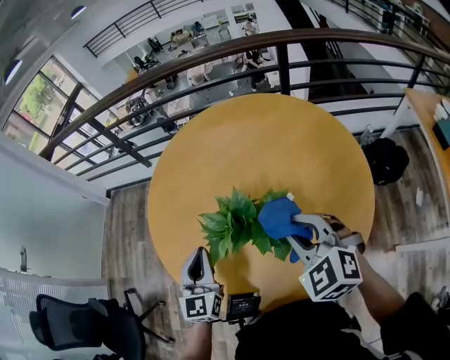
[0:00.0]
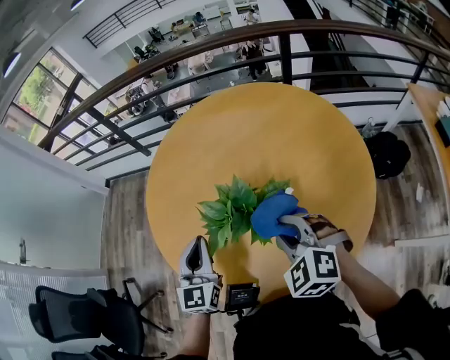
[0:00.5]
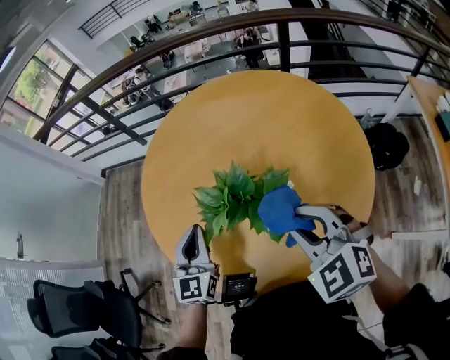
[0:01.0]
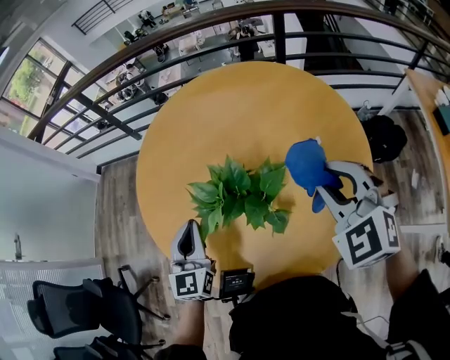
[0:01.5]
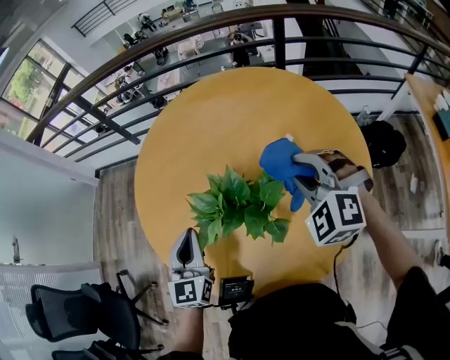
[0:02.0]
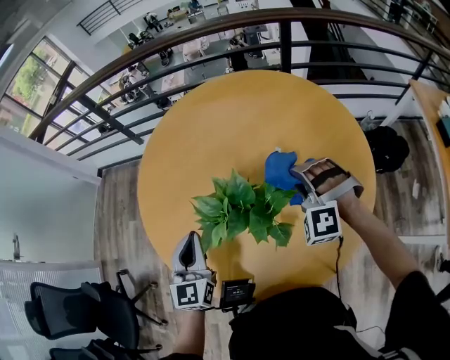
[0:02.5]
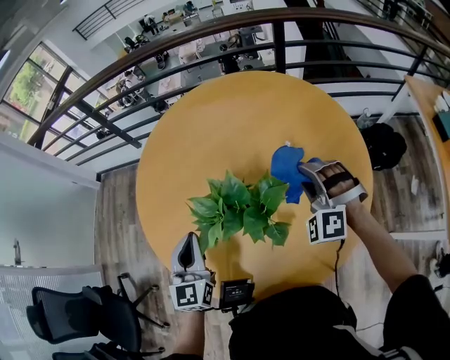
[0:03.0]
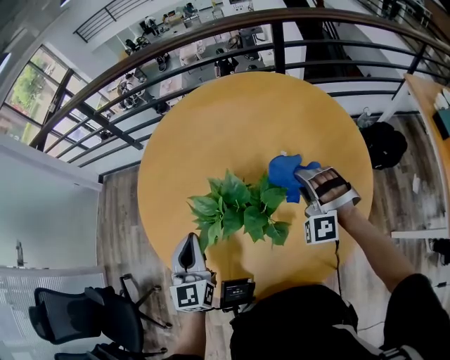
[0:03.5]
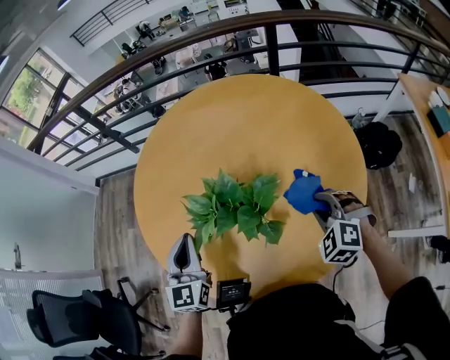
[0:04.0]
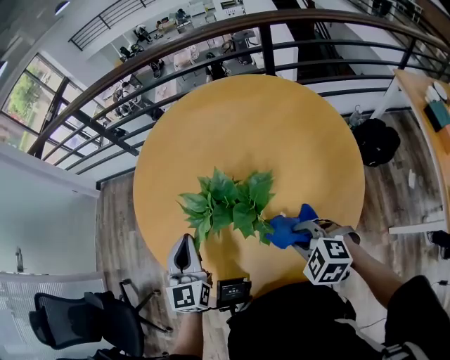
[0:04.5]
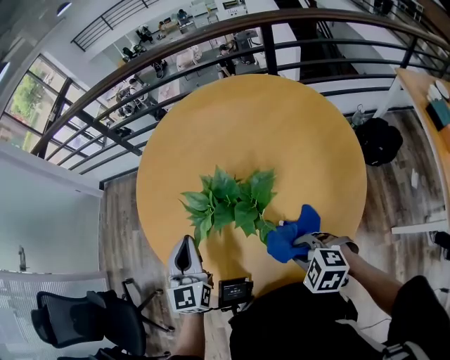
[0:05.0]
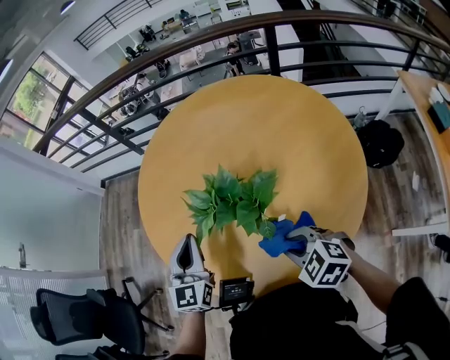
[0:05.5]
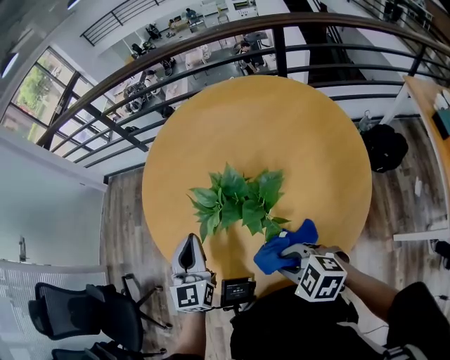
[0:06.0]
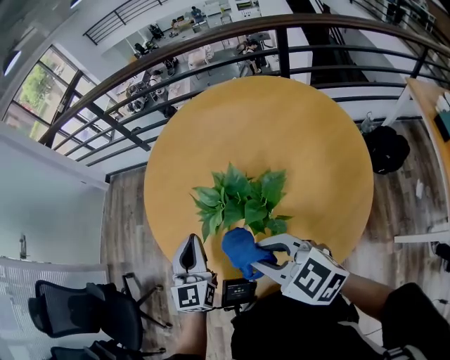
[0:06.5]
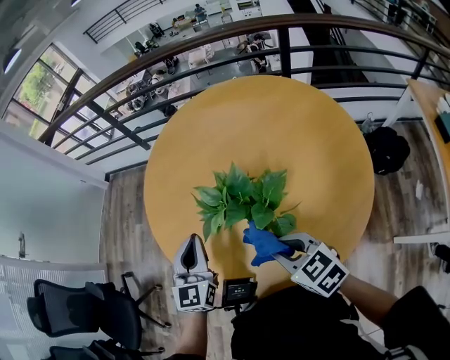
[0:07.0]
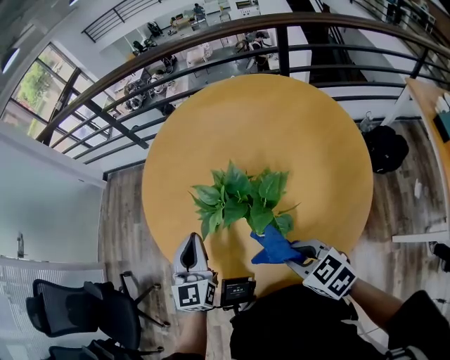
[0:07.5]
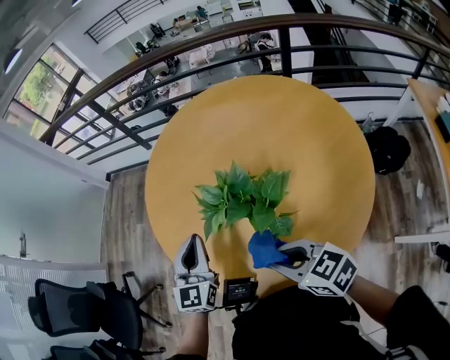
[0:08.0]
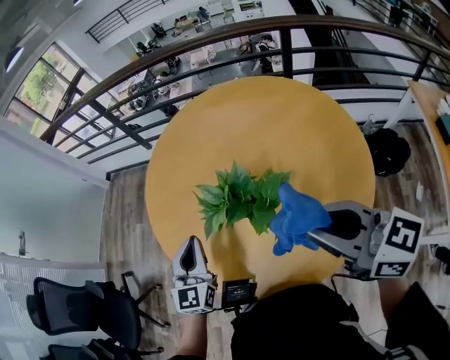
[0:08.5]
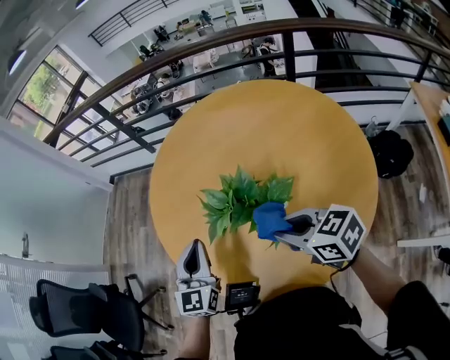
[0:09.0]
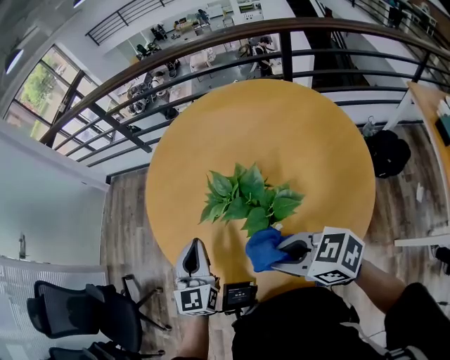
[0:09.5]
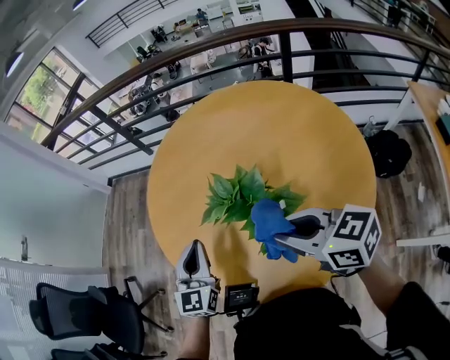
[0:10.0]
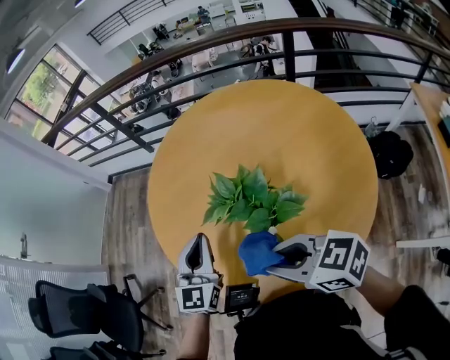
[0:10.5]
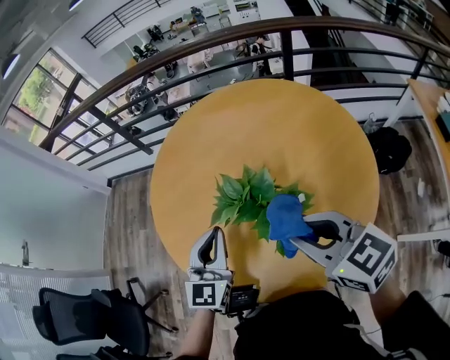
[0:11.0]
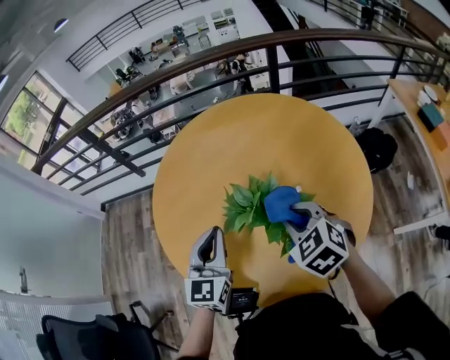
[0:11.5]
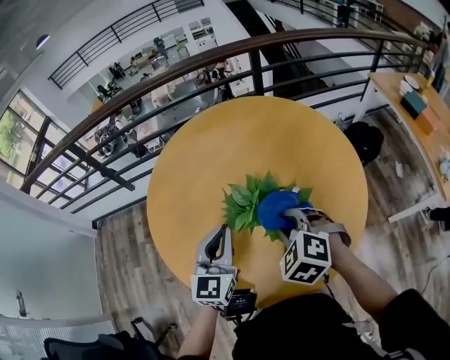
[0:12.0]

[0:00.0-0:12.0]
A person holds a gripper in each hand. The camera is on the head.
0:00.0 to 0:02.0: The right gripper shifts about 10 cm forward, and rotates about 20 degrees.
0:02.0 to 0:04.0: The right gripper is displaced downward, backward and to the right by some 15 cm.
0:04.0 to 0:06.0: The right gripper changes place by approximately 20 cm, and changes its angle by approximately 40 degrees.
0:06.0 to 0:08.0: The right gripper moves up and down over about 10 cm, changing direction 2 times, and turns by approximately 30 degrees.
0:08.0 to 0:10.0: The right gripper moves up and down over roughly 15 cm, changing direction 2 times.
0:10.0 to 0:12.0: The left gripper ends up about 10 cm from where it was, and changes its angle by approximately 30 degrees; the right gripper goes approximately 5 cm downward, and tilts its fingers roughly 30 degrees downward.

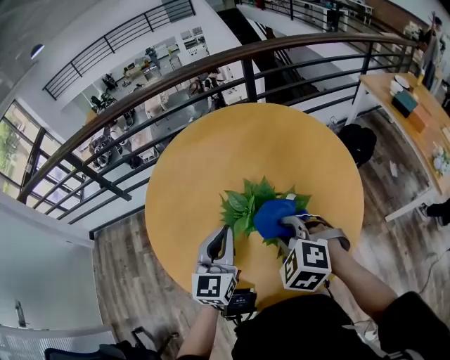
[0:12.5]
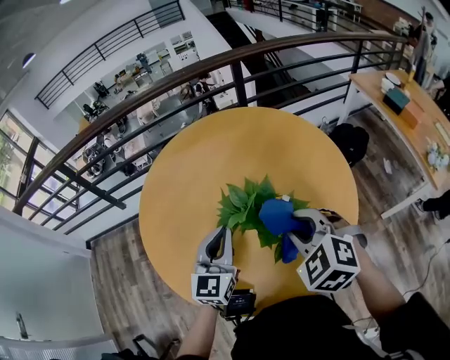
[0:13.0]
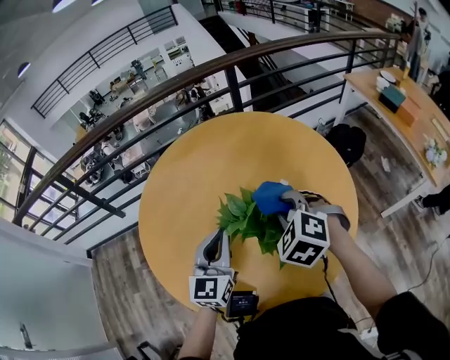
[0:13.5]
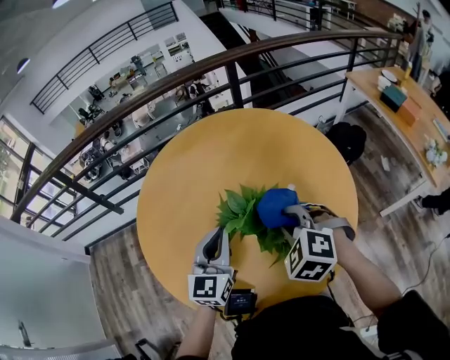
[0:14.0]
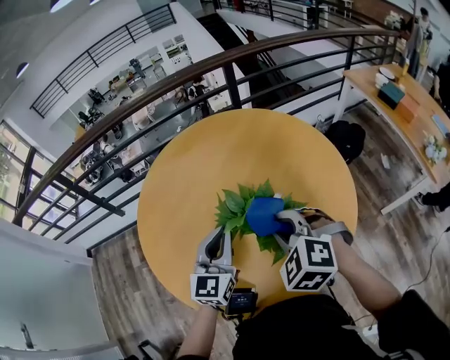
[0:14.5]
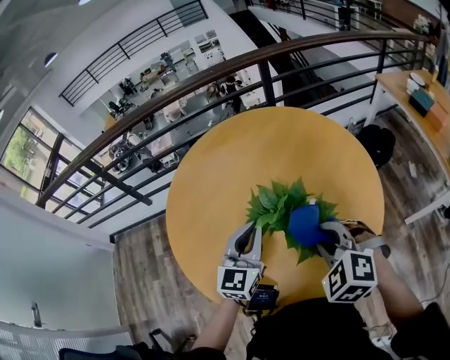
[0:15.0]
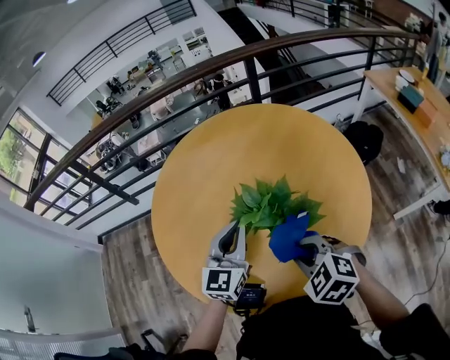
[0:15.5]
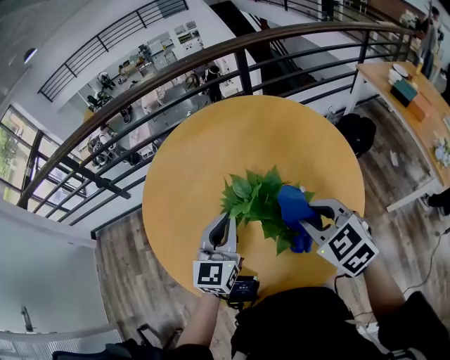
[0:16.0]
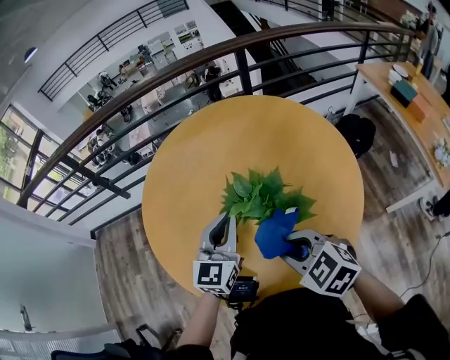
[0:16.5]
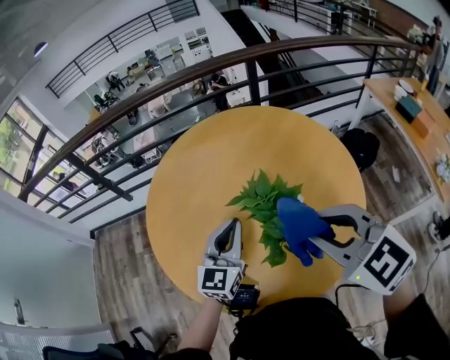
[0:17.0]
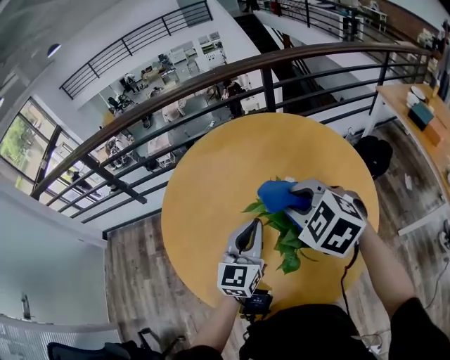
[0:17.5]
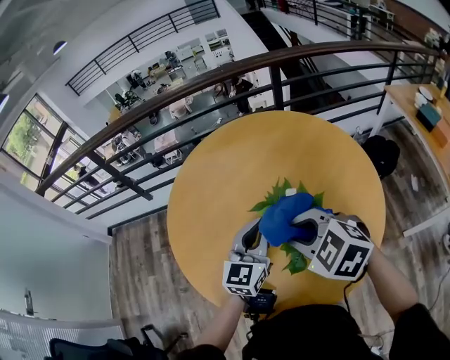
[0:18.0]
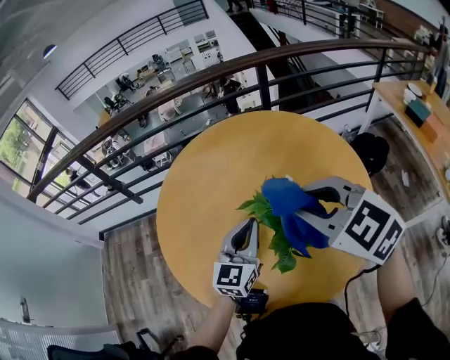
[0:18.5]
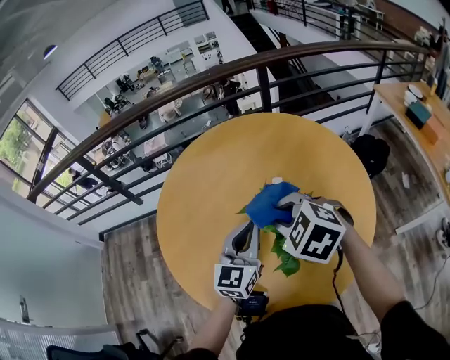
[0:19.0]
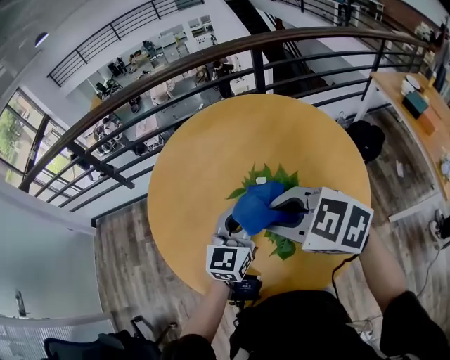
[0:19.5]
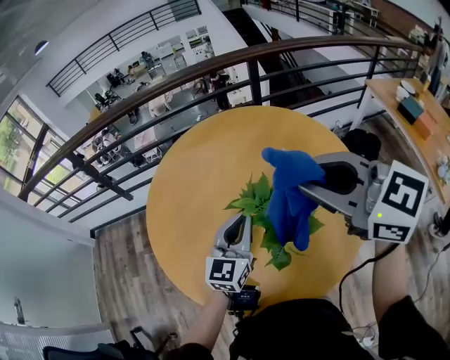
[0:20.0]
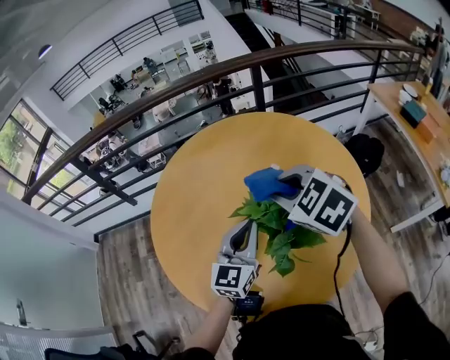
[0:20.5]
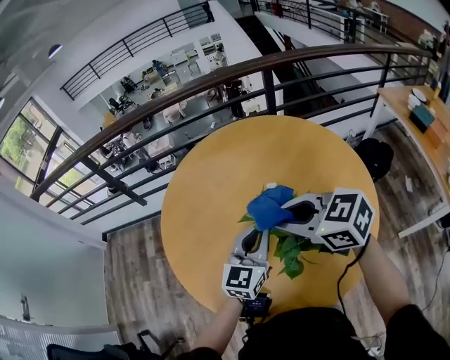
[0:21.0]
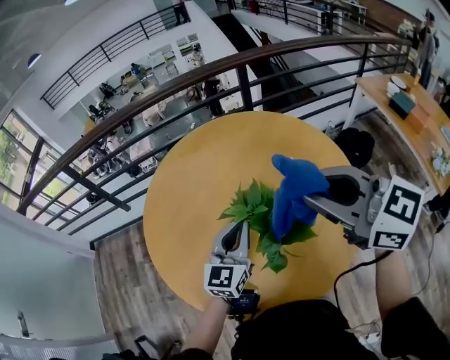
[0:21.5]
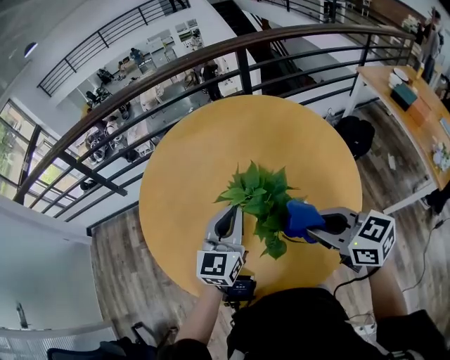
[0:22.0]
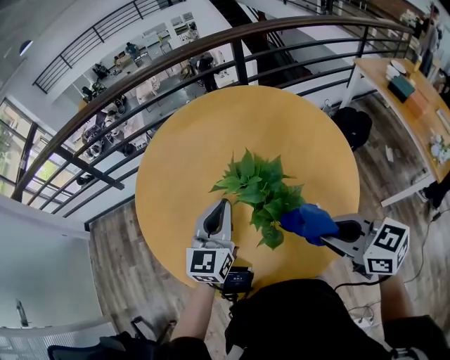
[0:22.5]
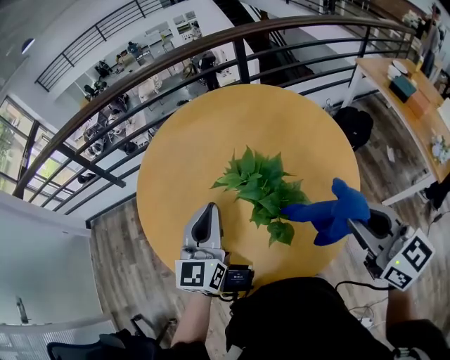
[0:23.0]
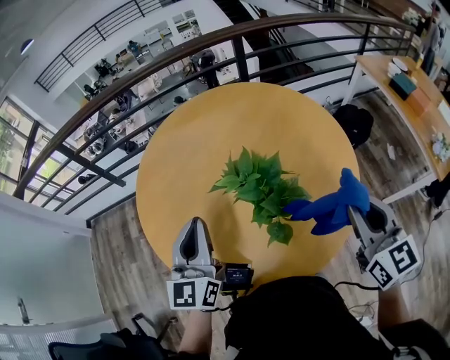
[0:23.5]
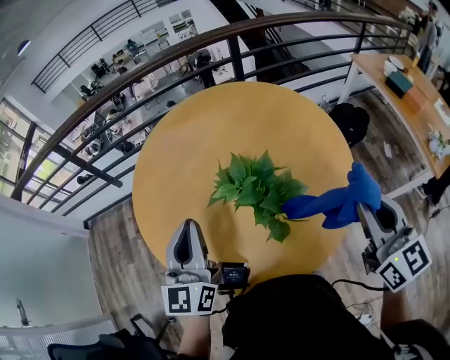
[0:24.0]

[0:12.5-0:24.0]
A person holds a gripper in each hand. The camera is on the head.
0:14.5 to 0:16.5: The right gripper moves forward and backward over about 10 cm, changing direction 2 times, and swivels roughly 30 degrees.
0:16.5 to 0:18.5: The right gripper moves up and down over some 15 cm, changing direction 2 times.
0:18.5 to 0:20.0: The right gripper travels upward by some 5 cm, and turns by some 20 degrees.
0:20.0 to 0:22.0: The right gripper moves up and down over some 20 cm, changing direction 2 times, and turns by roughly 20 degrees.
0:22.0 to 0:24.0: The right gripper shifts roughly 15 cm to the right, upward and backward, and turns by roughly 40 degrees, while the left gripper heads to the left, upward and backward, covering roughly 15 cm.

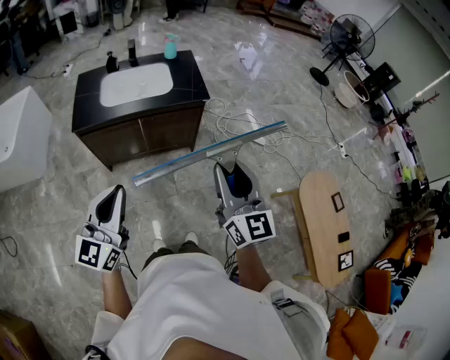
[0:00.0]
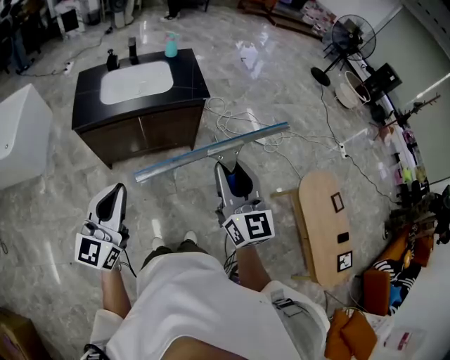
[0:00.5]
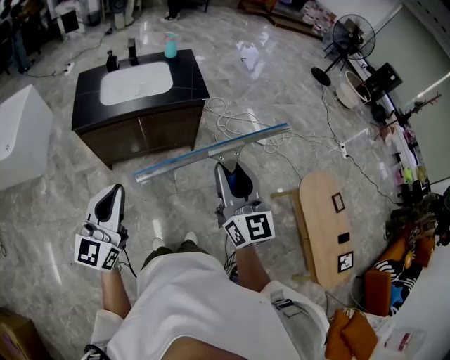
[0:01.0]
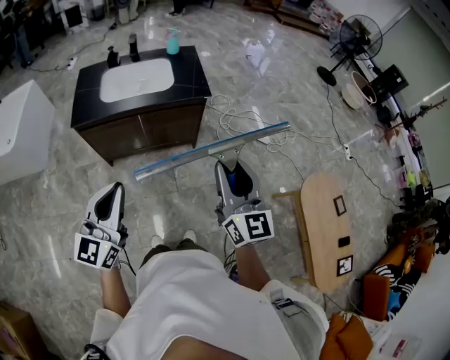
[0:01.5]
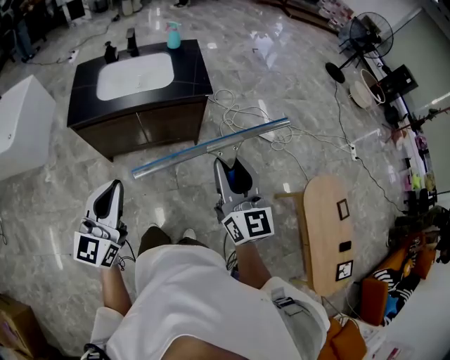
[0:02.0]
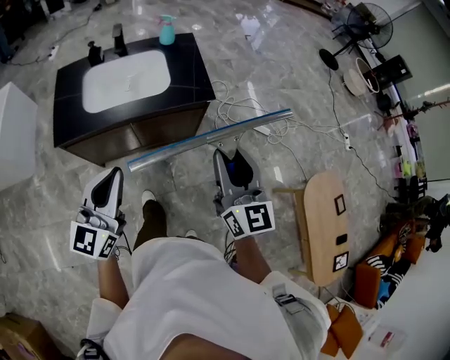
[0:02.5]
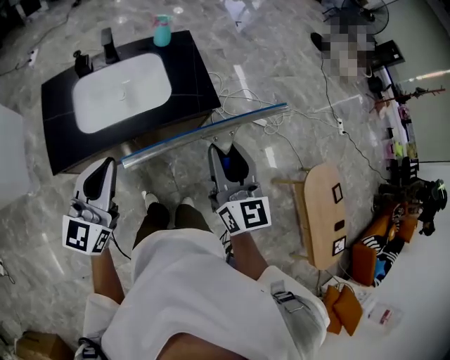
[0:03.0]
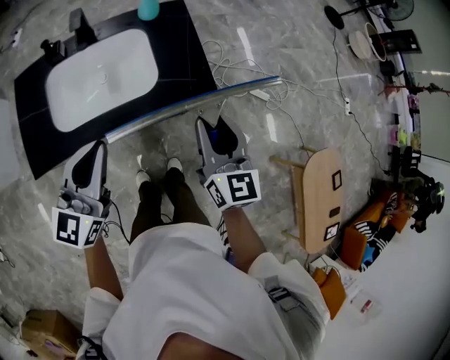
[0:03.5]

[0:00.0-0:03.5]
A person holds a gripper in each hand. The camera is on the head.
0:00.0 to 0:02.0: Both grippers move forward, some 5 cm.
0:02.0 to 0:03.5: Both grippers are carried forward, about 40 cm.
